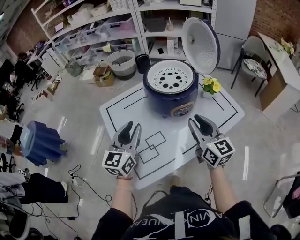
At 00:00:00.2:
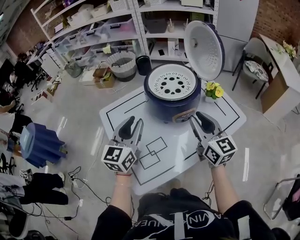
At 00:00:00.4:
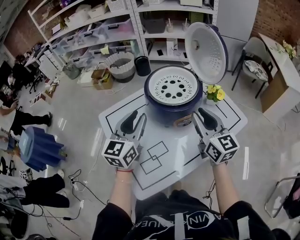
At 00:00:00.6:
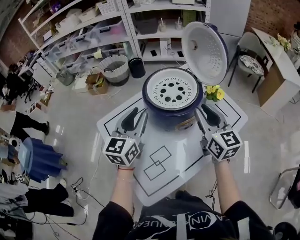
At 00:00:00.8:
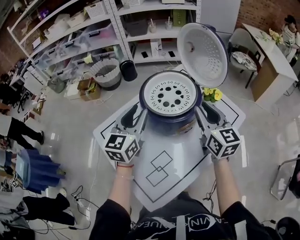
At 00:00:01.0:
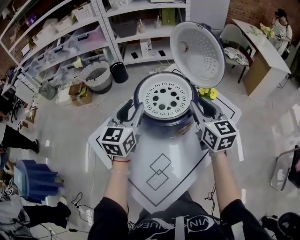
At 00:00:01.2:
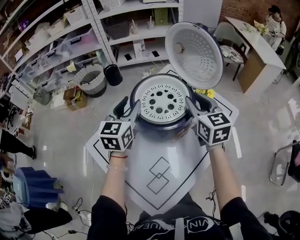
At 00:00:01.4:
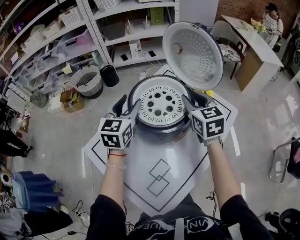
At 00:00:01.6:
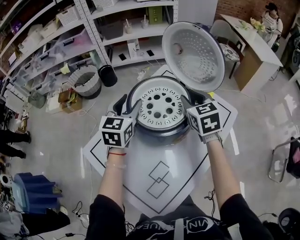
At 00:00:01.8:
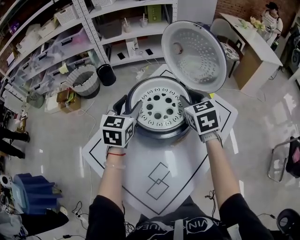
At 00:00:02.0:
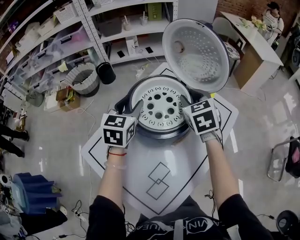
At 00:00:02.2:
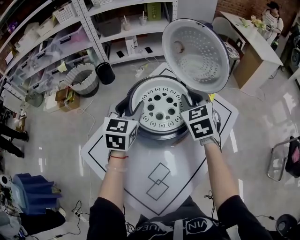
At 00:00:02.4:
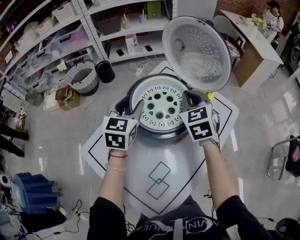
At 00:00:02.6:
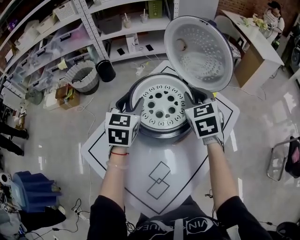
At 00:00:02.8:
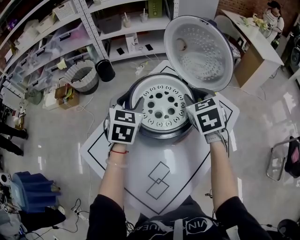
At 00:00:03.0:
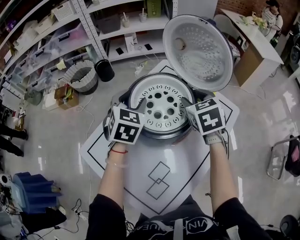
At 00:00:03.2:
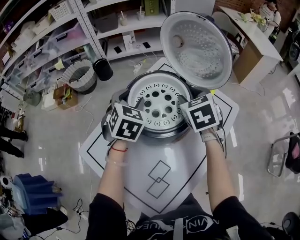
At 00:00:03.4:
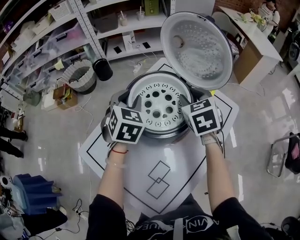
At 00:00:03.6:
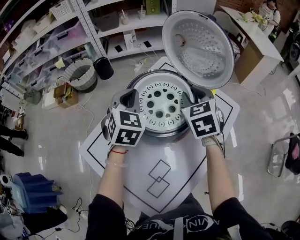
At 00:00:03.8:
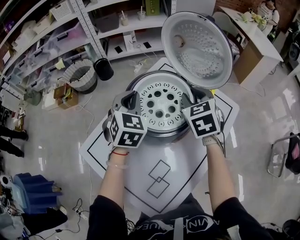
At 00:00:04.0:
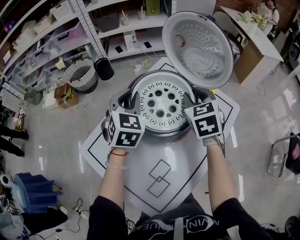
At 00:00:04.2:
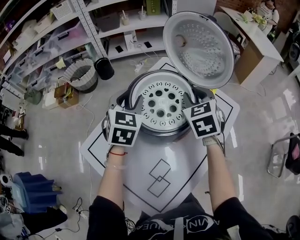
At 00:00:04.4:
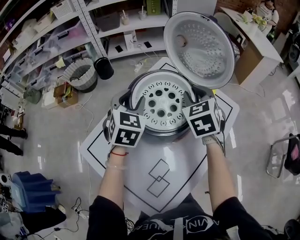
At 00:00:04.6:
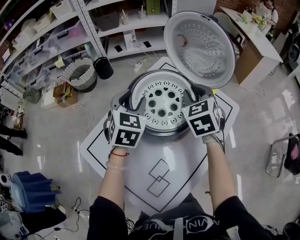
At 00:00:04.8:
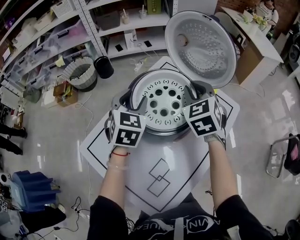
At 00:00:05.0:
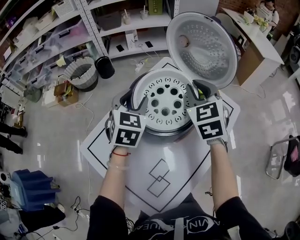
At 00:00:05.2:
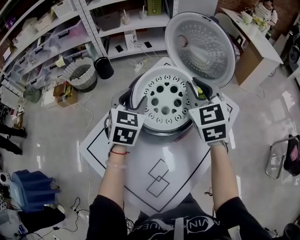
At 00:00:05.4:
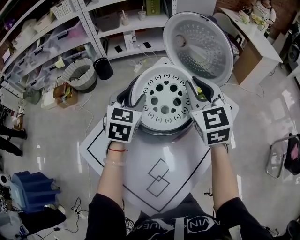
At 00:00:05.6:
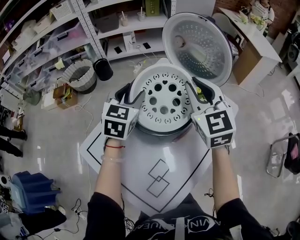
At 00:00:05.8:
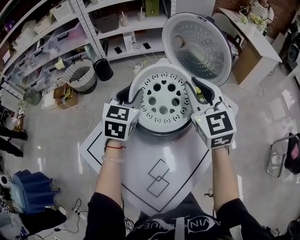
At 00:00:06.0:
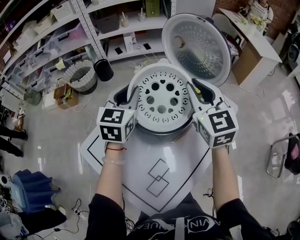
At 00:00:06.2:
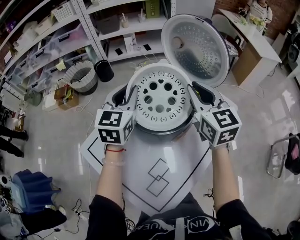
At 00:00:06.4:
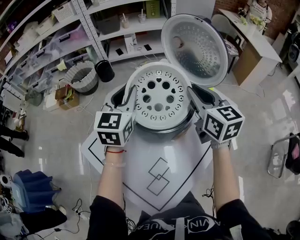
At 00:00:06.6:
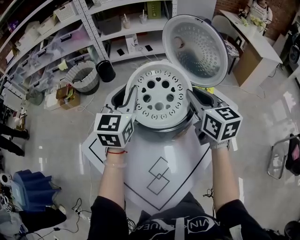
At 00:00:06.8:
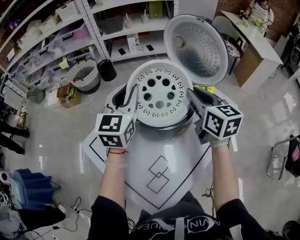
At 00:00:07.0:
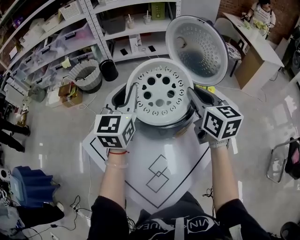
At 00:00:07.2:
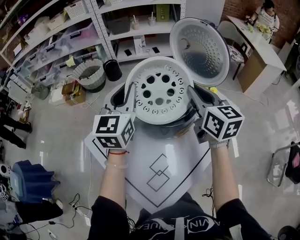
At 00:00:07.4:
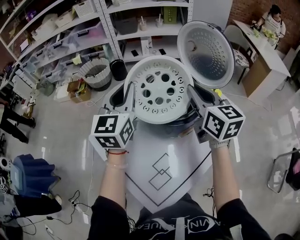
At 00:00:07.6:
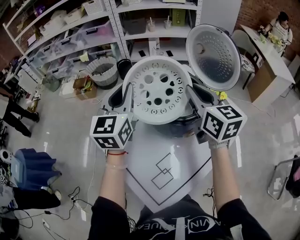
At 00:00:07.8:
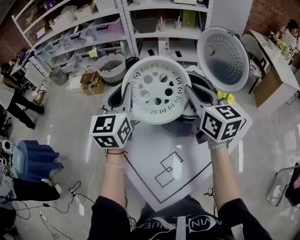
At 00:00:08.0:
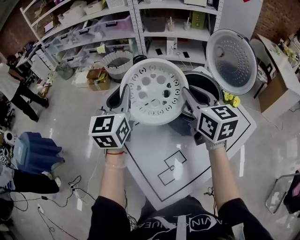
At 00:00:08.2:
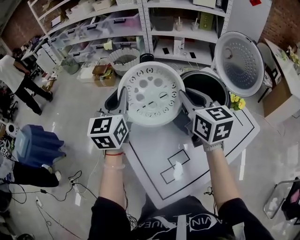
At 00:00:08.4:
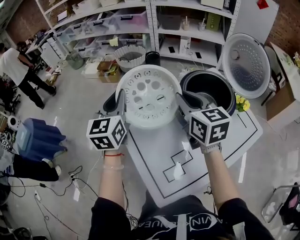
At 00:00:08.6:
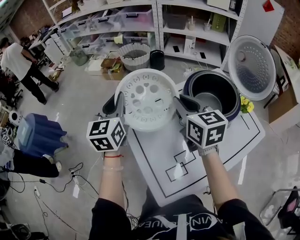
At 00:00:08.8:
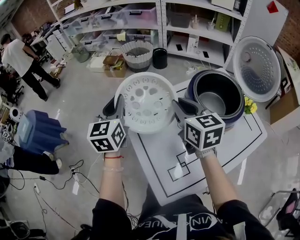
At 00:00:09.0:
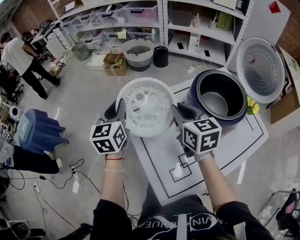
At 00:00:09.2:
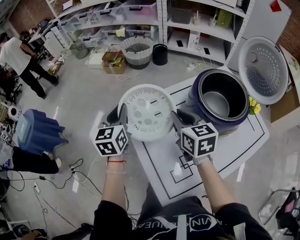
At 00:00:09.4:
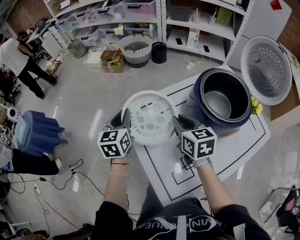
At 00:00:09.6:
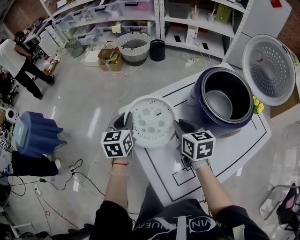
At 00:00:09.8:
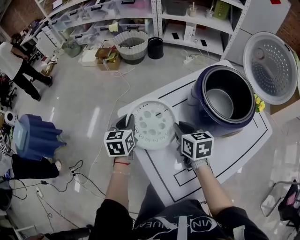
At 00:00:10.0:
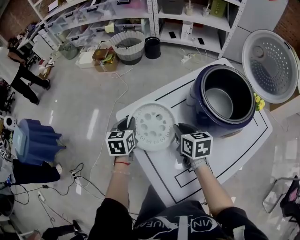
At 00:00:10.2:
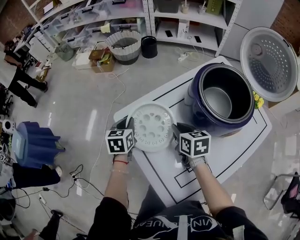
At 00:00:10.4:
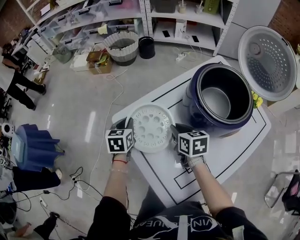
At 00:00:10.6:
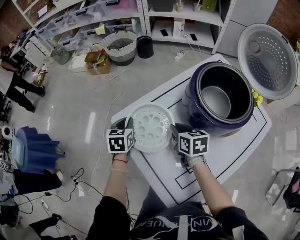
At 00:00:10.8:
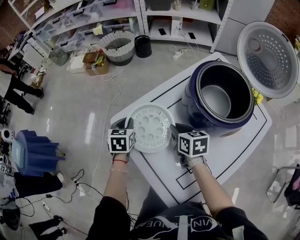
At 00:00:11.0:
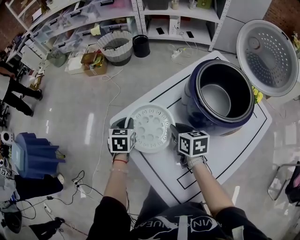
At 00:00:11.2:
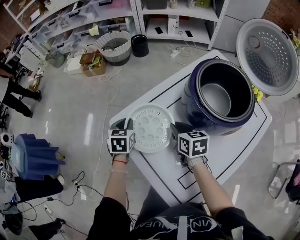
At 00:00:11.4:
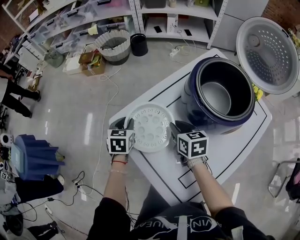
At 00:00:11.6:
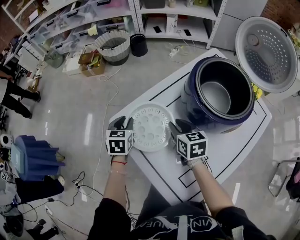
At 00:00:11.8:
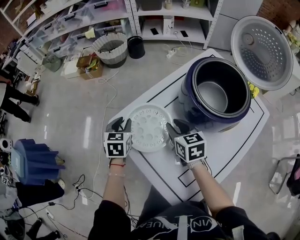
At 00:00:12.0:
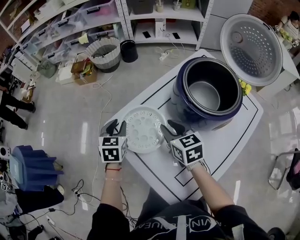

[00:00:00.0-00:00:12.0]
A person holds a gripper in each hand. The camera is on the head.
00:00:00.0 to 00:00:01.6: Both grippers travel together forward, roughly 25 cm. The left gripper changes its angle by approximately 30 degrees, and opens its fingers. The right gripper changes its angle by roughly 40 degrees.
00:00:01.6 to 00:00:03.0: The left gripper turns by some 20 degrees. Meanwhile the right gripper closes, then opens again.
00:00:03.0 to 00:00:04.4: The right gripper closes up. The left gripper closes, then reopens.
00:00:04.4 to 00:00:06.0: The right gripper moves upward, some 10 cm, and rotates approximately 30 degrees, while the left gripper rotates roughly 20 degrees.
00:00:06.0 to 00:00:07.6: The right gripper moves to the left, about 5 cm, and rotates roughly 30 degrees. Meanwhile the left gripper heads upward, backward and to the left, covering some 15 cm, and changes its angle by roughly 20 degrees.
00:00:07.6 to 00:00:09.0: Both grippers move to the left and downward, roughly 25 cm. The left gripper turns by approximately 30 degrees; the right gripper turns by approximately 20 degrees.
00:00:09.0 to 00:00:10.4: Both grippers move downward, approximately 20 cm. The left gripper swivels some 30 degrees; the right gripper rotates roughly 30 degrees.
00:00:10.4 to 00:00:12.0: The right gripper ends up about 5 cm from where it was.

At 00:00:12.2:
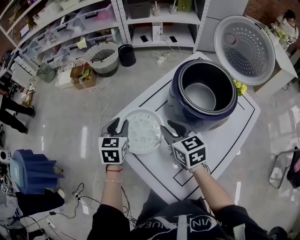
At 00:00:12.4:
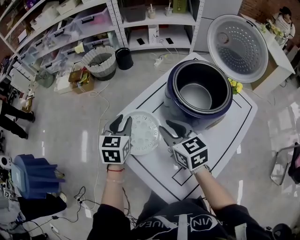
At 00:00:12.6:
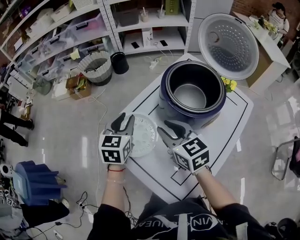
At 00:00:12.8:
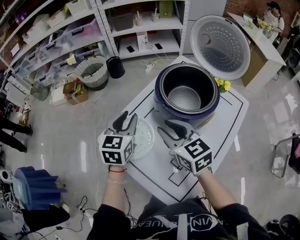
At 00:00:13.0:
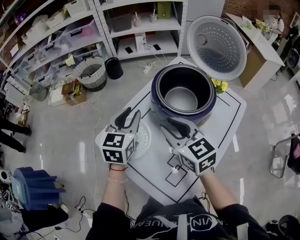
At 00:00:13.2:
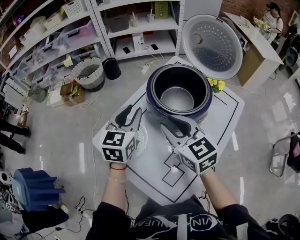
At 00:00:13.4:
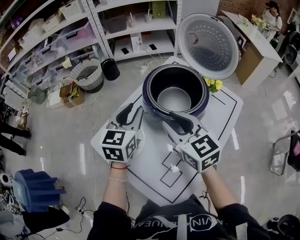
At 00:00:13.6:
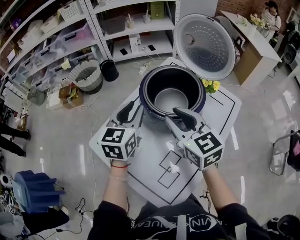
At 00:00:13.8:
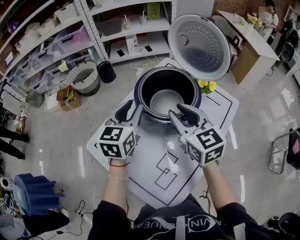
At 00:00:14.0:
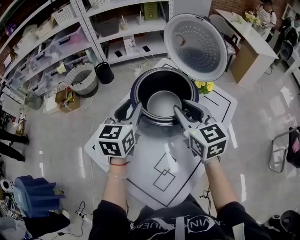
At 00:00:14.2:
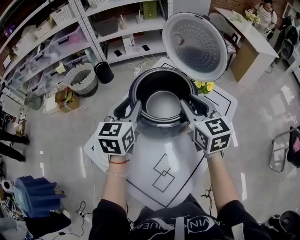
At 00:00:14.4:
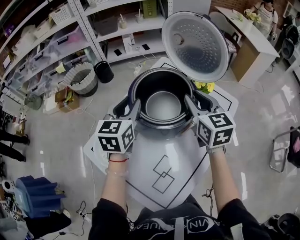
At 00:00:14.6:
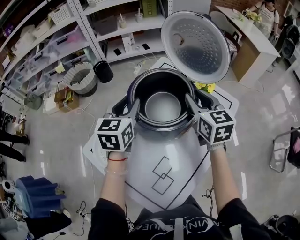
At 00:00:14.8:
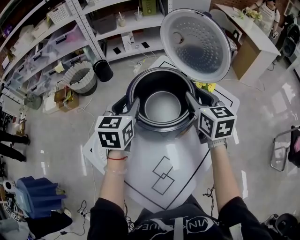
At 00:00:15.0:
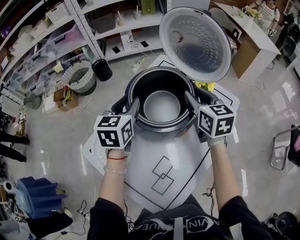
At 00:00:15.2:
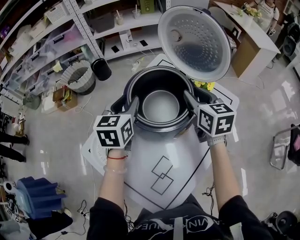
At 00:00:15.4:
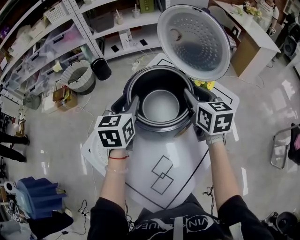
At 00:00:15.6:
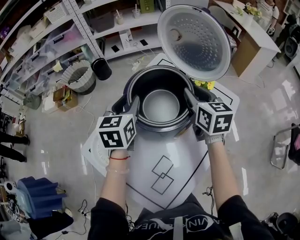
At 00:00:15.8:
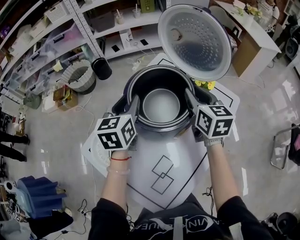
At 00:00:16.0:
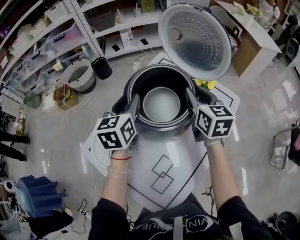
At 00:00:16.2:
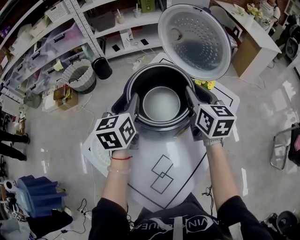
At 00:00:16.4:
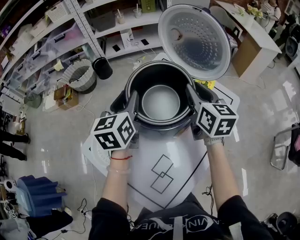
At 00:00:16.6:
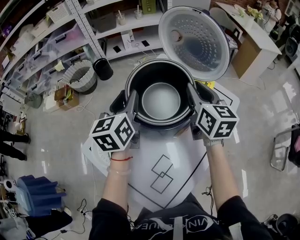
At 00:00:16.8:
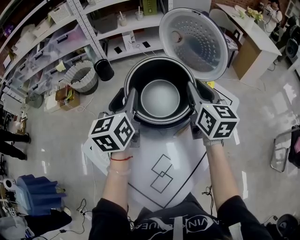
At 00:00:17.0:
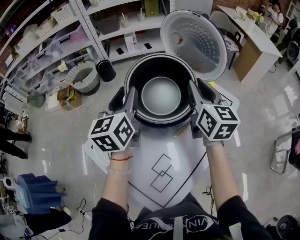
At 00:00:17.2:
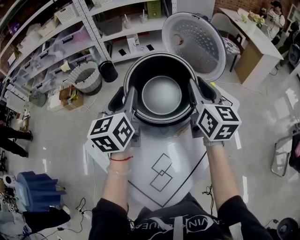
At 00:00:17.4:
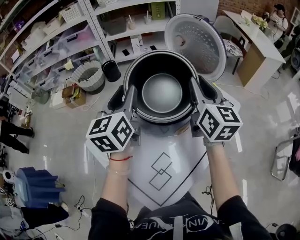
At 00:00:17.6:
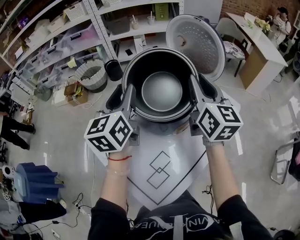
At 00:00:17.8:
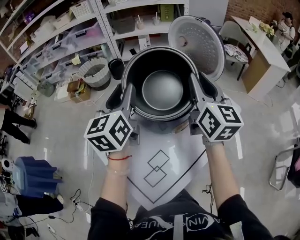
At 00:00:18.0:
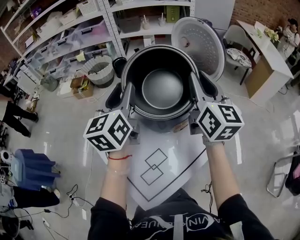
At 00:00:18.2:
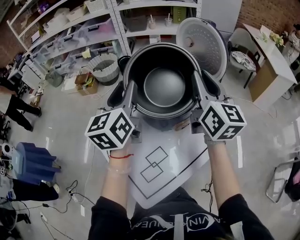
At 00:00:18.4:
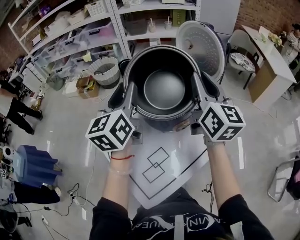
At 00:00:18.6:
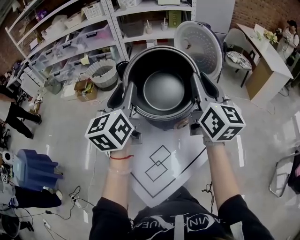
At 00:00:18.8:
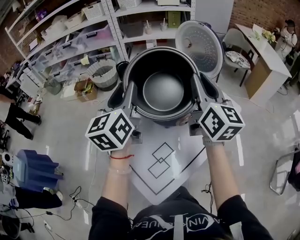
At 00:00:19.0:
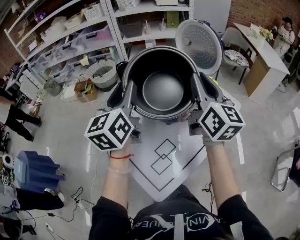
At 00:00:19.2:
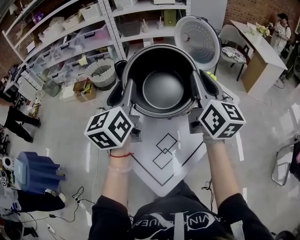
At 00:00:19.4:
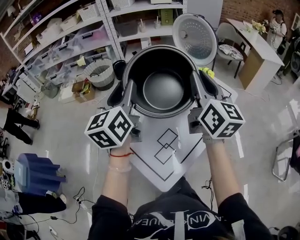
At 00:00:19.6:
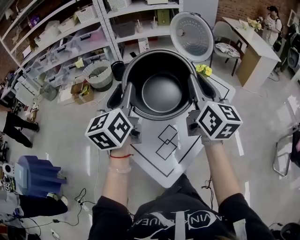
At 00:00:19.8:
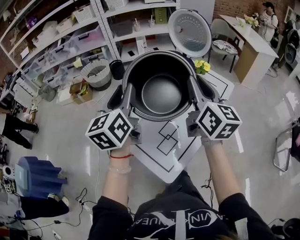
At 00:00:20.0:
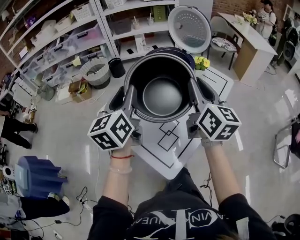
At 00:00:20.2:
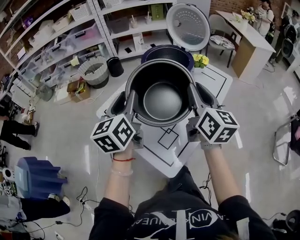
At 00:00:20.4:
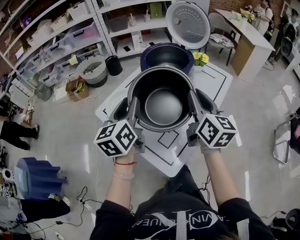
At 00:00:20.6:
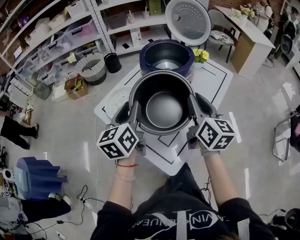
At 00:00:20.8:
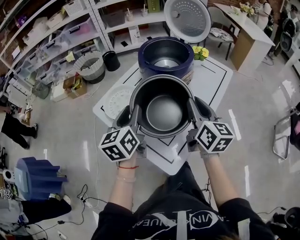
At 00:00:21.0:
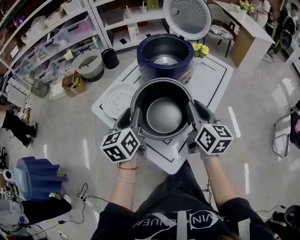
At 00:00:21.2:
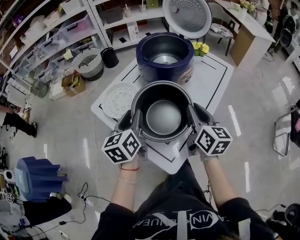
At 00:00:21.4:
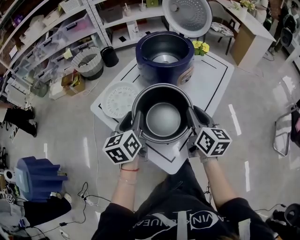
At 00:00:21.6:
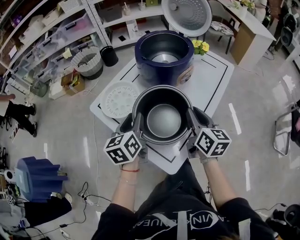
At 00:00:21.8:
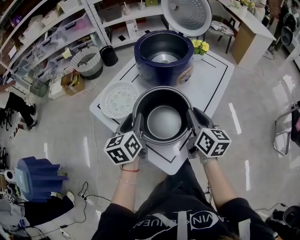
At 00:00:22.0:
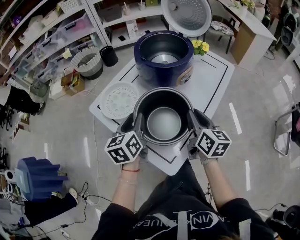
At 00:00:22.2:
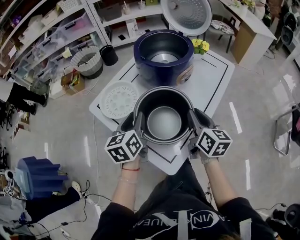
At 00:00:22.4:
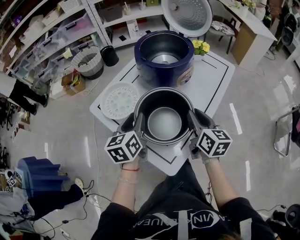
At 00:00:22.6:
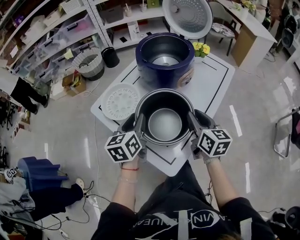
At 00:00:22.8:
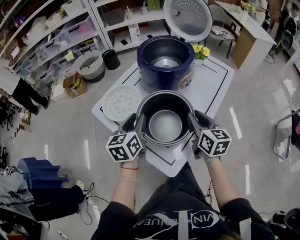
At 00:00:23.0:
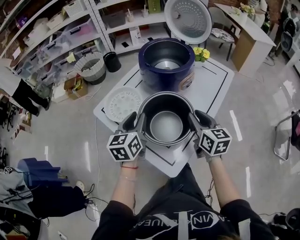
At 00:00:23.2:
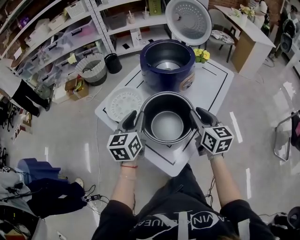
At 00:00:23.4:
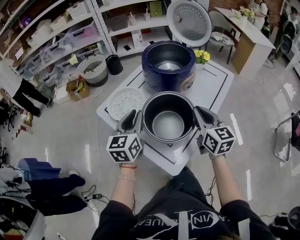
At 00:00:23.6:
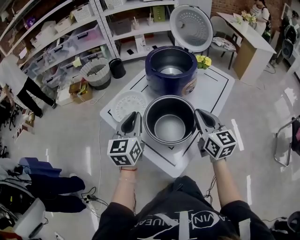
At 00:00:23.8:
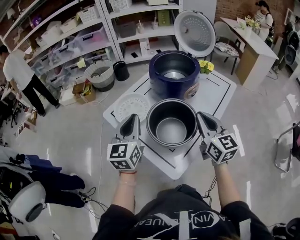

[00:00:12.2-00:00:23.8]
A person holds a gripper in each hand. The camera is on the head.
00:00:12.2 to 00:00:13.6: The left gripper heads to the right and upward, covering approximately 25 cm, and rotates about 30 degrees; the right gripper shifts about 20 cm upward and to the right.
00:00:13.6 to 00:00:15.0: The left gripper is displaced forward by about 5 cm. The right gripper moves to the right and forward, roughly 20 cm.
00:00:15.0 to 00:00:16.6: There are only small adjustments of the grippers.
00:00:16.6 to 00:00:18.0: The right gripper travels upward by about 10 cm, while the left gripper goes roughly 10 cm upward and backward.
00:00:18.0 to 00:00:19.4: The grippers both shift backward and to the left by approximately 15 cm.
00:00:19.4 to 00:00:21.0: The grippers both shift downward and backward by approximately 20 cm.
00:00:21.0 to 00:00:22.4: The right gripper shifts about 5 cm downward.
00:00:22.4 to 00:00:23.8: Both grippers move upward, some 10 cm. The left gripper rotates roughly 30 degrees, and closes. The right gripper rotates roughly 20 degrees, and closes.
